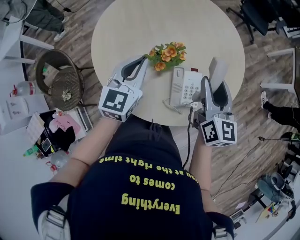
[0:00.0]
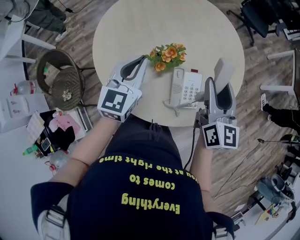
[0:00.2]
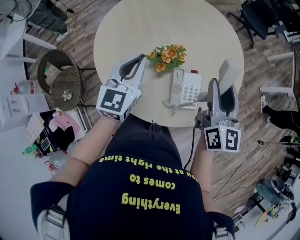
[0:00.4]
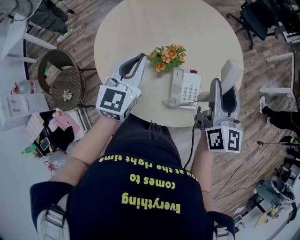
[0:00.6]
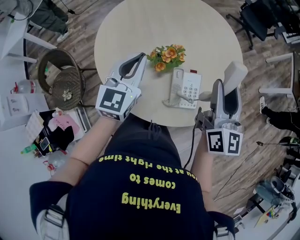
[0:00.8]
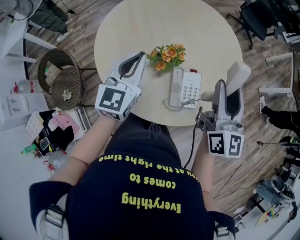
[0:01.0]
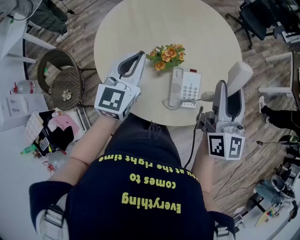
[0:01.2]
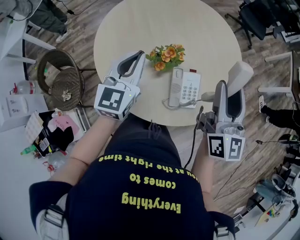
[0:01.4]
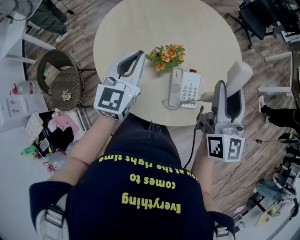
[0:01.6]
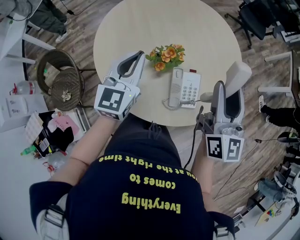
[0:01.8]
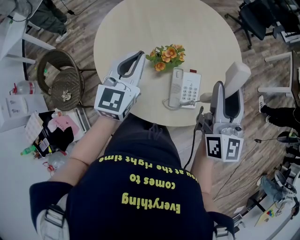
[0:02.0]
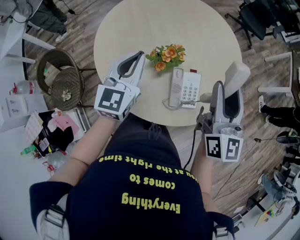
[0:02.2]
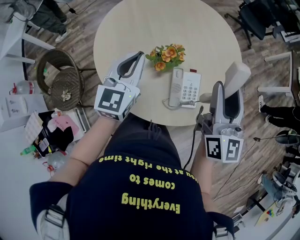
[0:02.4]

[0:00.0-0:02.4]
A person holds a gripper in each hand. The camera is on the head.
0:00.0 to 0:01.2: The right gripper travels upward by some 10 cm.
0:01.2 to 0:02.4: Both grippers stay about where they are.

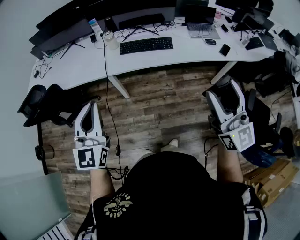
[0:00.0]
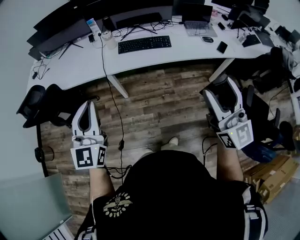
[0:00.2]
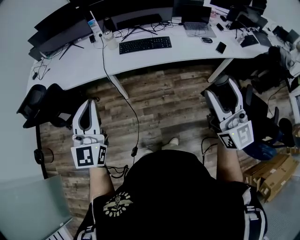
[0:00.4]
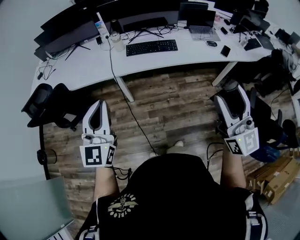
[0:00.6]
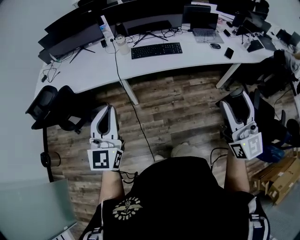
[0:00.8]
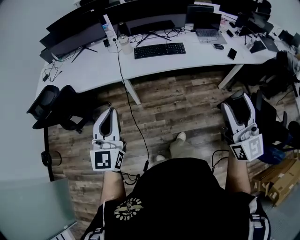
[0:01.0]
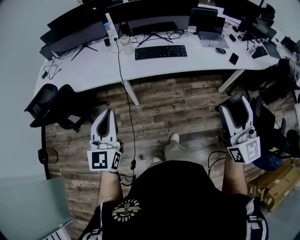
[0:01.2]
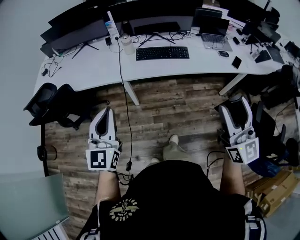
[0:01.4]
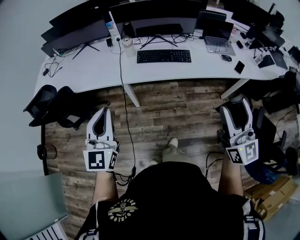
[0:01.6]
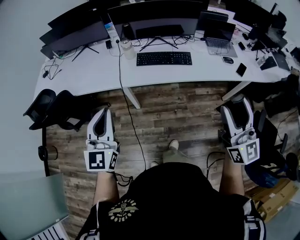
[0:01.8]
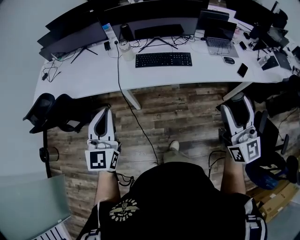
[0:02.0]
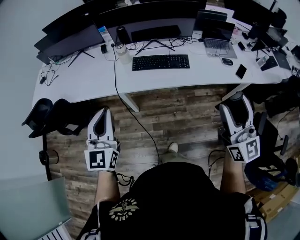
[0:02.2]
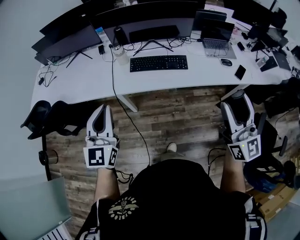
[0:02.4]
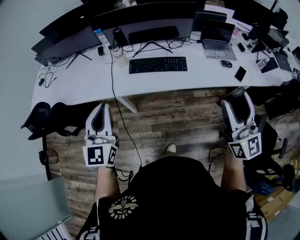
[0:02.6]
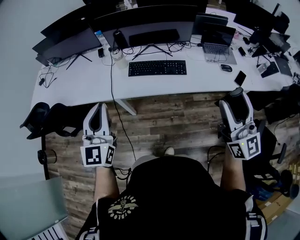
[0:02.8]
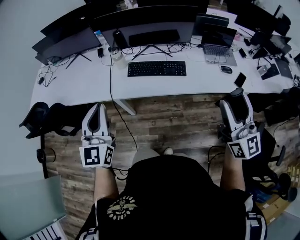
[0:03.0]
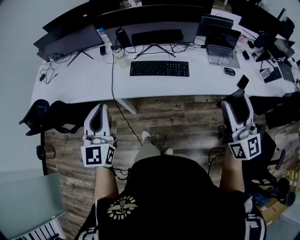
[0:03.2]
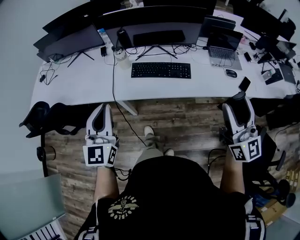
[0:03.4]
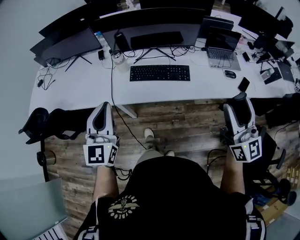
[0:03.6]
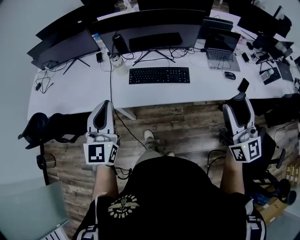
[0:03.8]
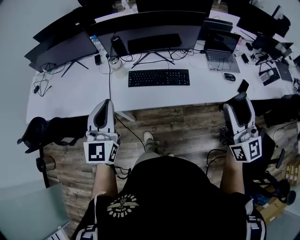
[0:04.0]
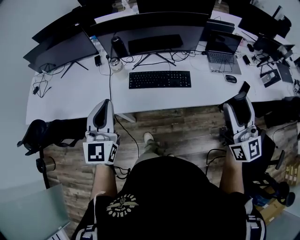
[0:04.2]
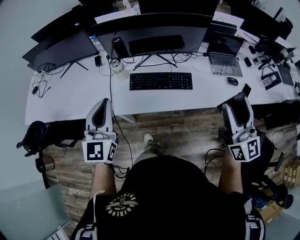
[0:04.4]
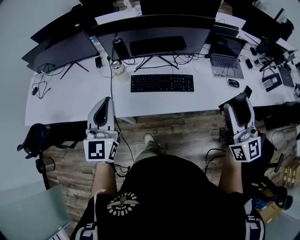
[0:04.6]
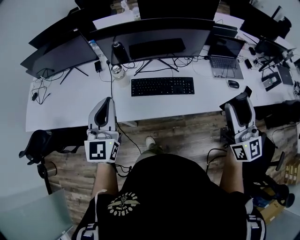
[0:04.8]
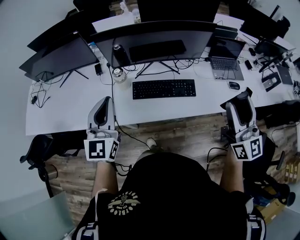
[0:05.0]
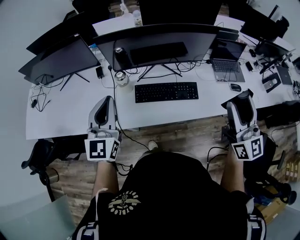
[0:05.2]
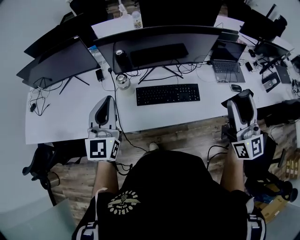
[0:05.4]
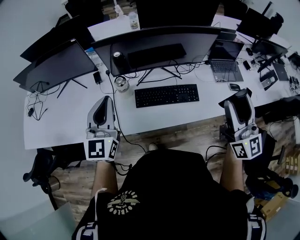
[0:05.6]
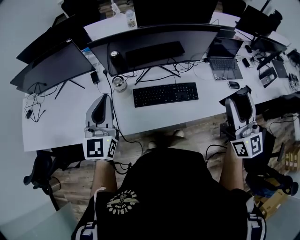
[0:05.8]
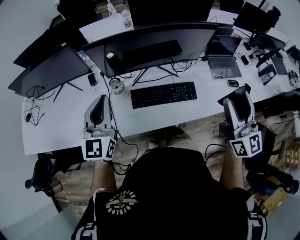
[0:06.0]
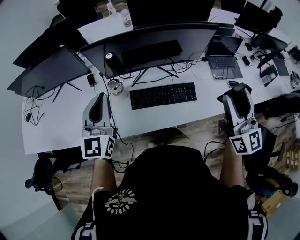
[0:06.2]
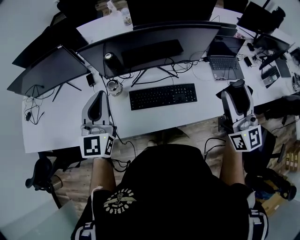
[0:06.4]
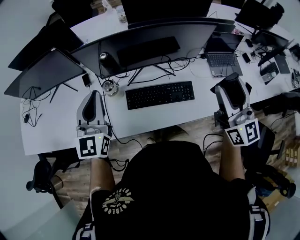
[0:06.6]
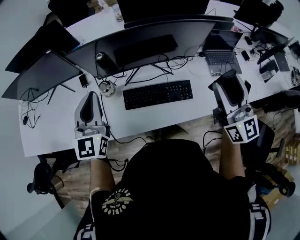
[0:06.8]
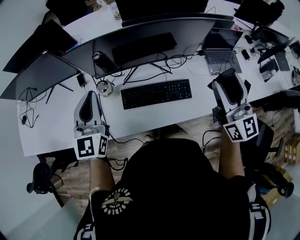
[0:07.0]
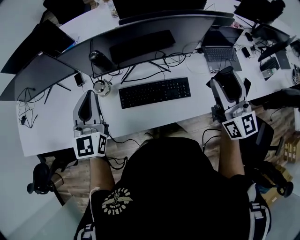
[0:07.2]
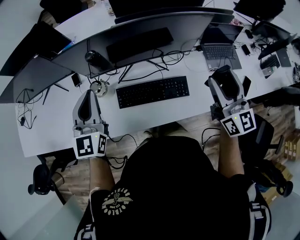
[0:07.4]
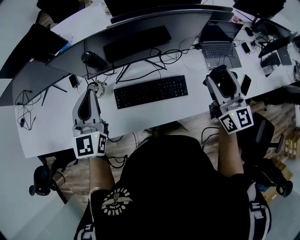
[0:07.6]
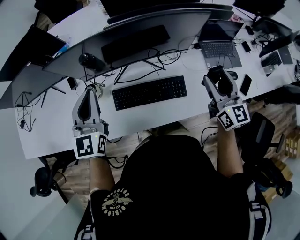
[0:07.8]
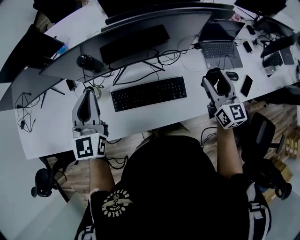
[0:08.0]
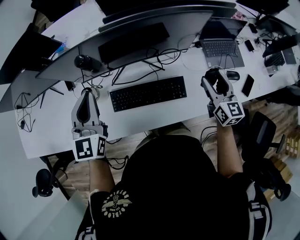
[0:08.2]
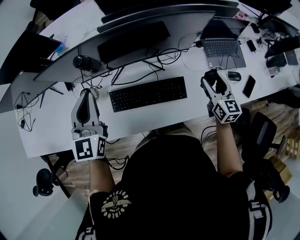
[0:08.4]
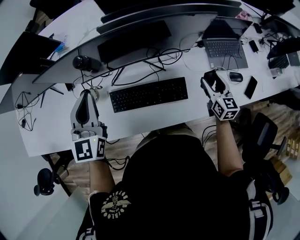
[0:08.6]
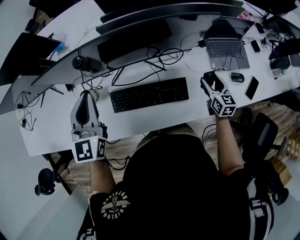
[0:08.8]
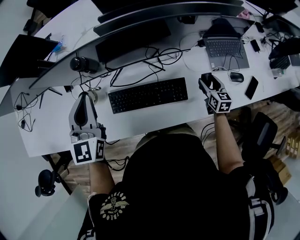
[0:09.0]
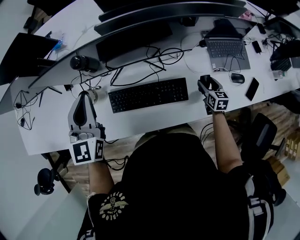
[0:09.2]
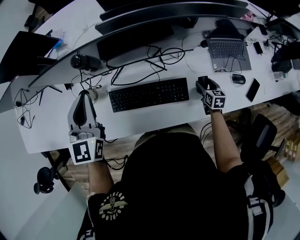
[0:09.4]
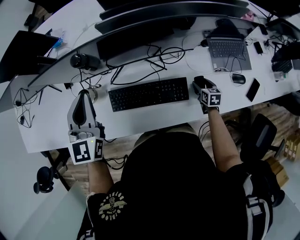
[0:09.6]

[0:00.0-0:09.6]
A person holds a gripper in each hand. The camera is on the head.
0:00.0 to 0:01.6: The right gripper ends up some 5 cm from where it was. Meanwhile the left gripper goes some 5 cm to the left.
0:01.6 to 0:03.2: The grippers both shift forward and to the right by approximately 20 cm.
0:03.2 to 0:04.8: Both grippers move forward, approximately 15 cm.
0:04.8 to 0:06.4: Both grippers move forward, about 15 cm.
0:06.4 to 0:08.0: The left gripper moves forward, to the right and downward, roughly 10 cm; the right gripper goes approximately 25 cm downward, forward and to the right, and turns by approximately 20 degrees.
0:08.0 to 0:09.6: The right gripper is displaced downward by roughly 30 cm, and tilts its fingers about 40 degrees downward.

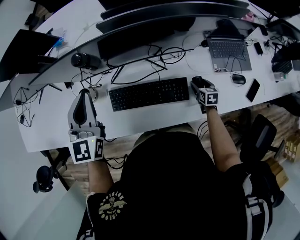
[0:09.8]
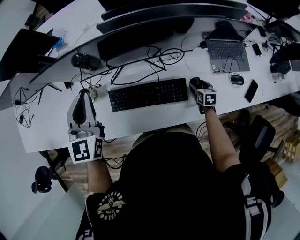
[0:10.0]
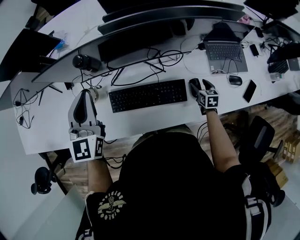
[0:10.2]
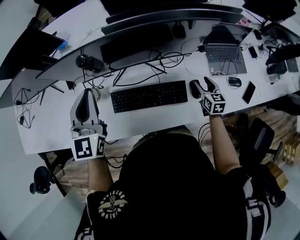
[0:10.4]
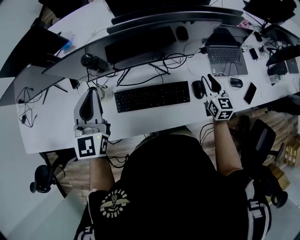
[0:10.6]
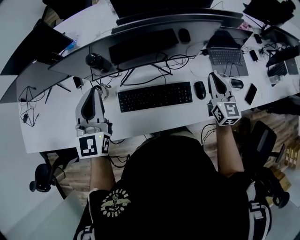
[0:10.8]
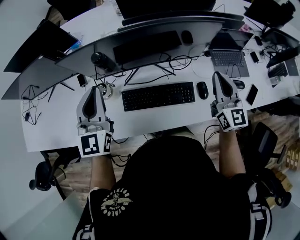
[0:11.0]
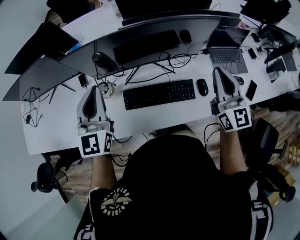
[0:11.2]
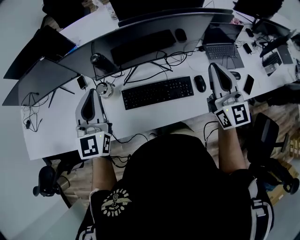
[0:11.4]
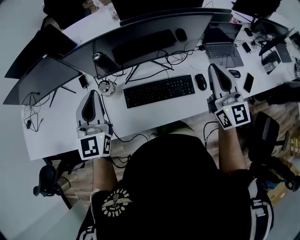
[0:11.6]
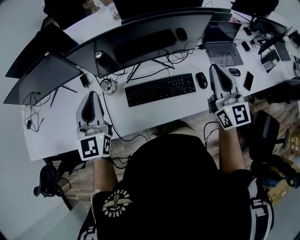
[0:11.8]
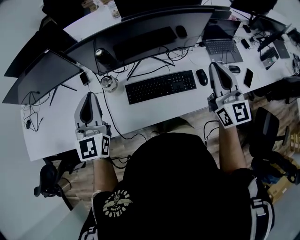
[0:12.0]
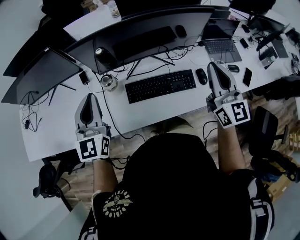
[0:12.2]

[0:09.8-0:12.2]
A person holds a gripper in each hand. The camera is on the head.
0:09.8 to 0:11.0: The left gripper heads upward, covering some 5 cm; the right gripper is displaced upward by some 40 cm, angles its fingers upward, by approximately 50 degrees, and closes.
0:11.0 to 0:12.2: The left gripper moves to the left and backward, approximately 10 cm, while the right gripper goes approximately 15 cm backward, to the left and upward.

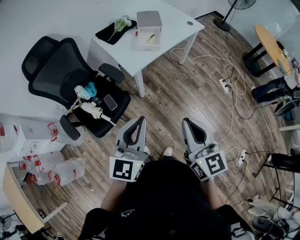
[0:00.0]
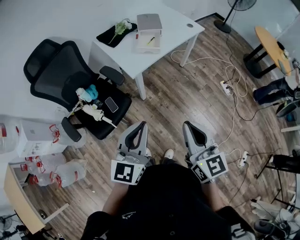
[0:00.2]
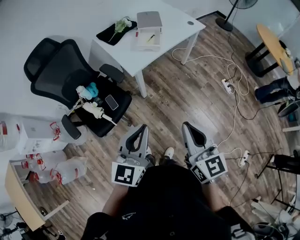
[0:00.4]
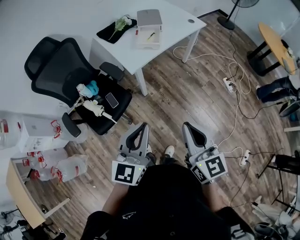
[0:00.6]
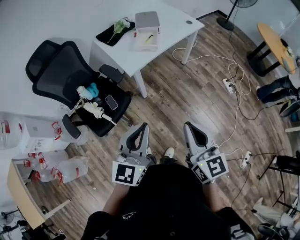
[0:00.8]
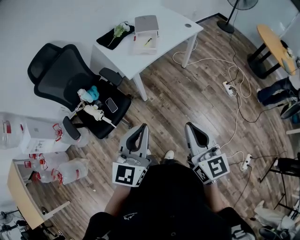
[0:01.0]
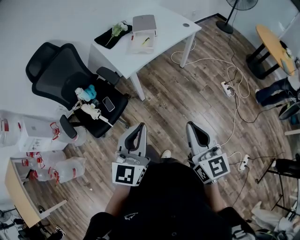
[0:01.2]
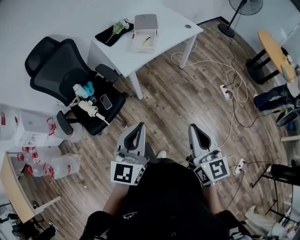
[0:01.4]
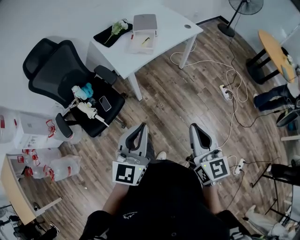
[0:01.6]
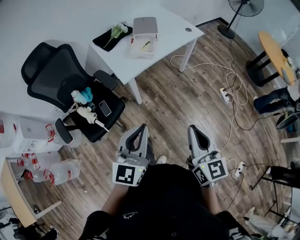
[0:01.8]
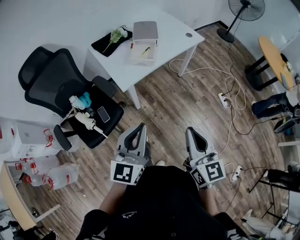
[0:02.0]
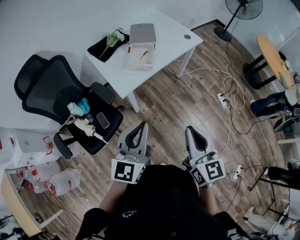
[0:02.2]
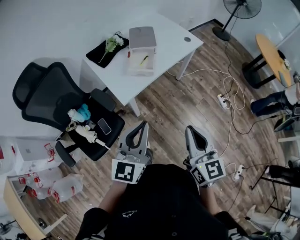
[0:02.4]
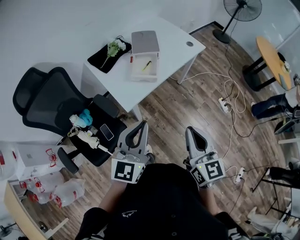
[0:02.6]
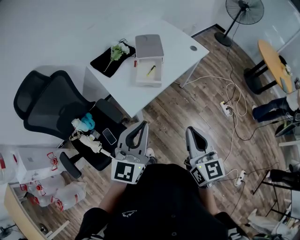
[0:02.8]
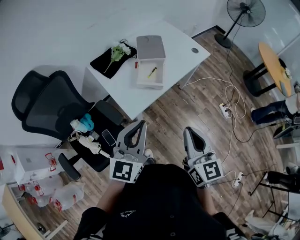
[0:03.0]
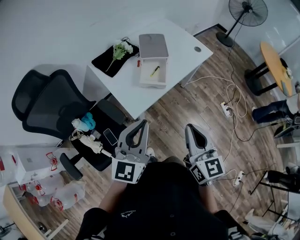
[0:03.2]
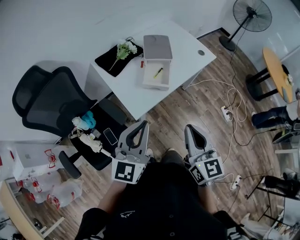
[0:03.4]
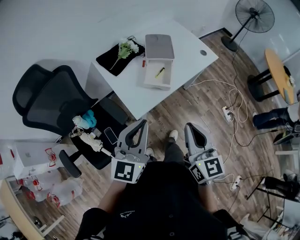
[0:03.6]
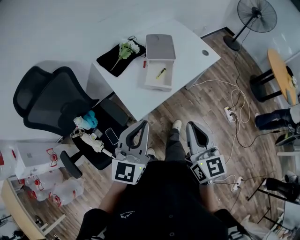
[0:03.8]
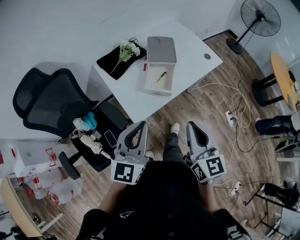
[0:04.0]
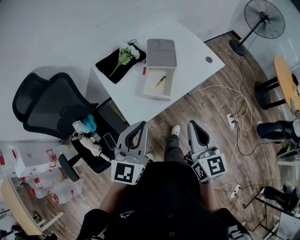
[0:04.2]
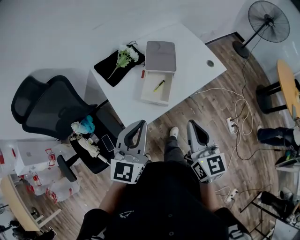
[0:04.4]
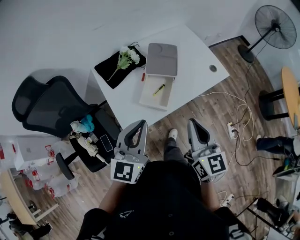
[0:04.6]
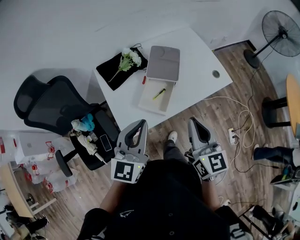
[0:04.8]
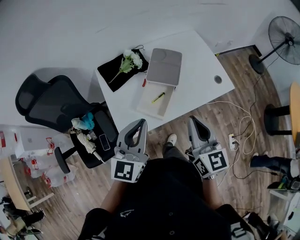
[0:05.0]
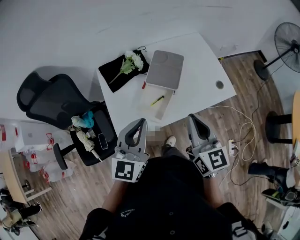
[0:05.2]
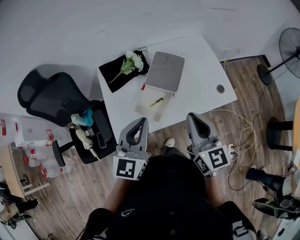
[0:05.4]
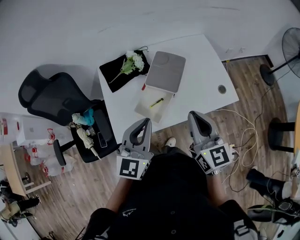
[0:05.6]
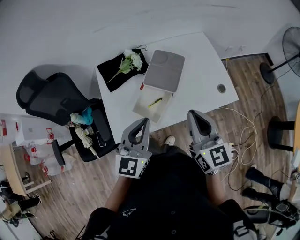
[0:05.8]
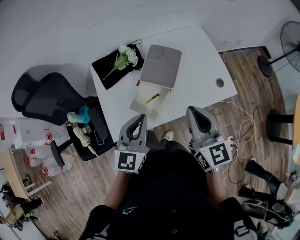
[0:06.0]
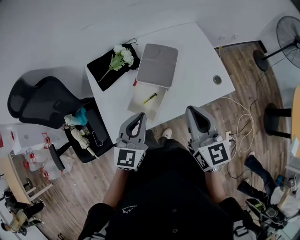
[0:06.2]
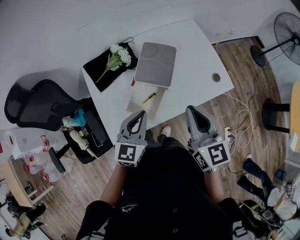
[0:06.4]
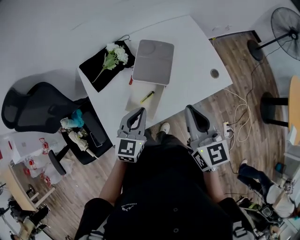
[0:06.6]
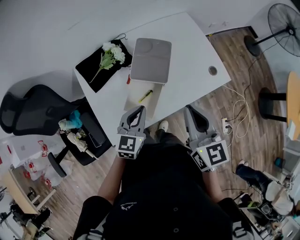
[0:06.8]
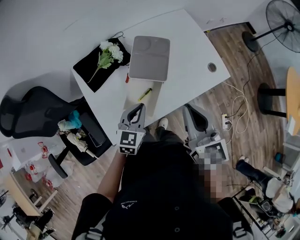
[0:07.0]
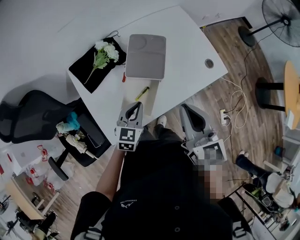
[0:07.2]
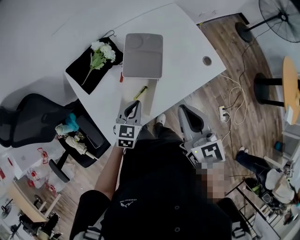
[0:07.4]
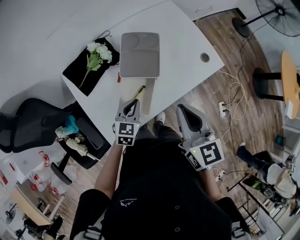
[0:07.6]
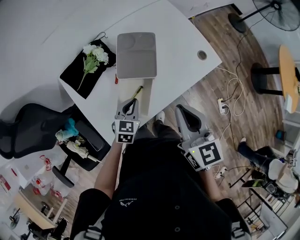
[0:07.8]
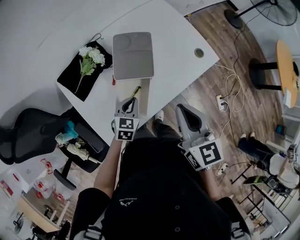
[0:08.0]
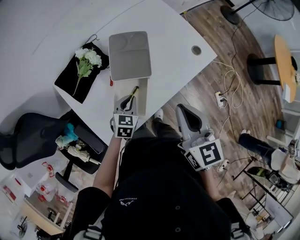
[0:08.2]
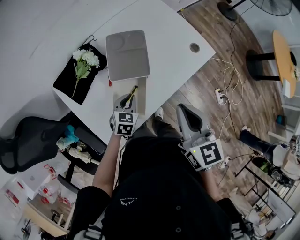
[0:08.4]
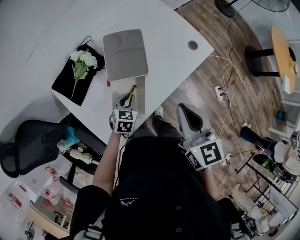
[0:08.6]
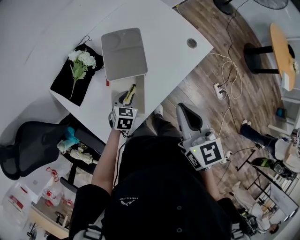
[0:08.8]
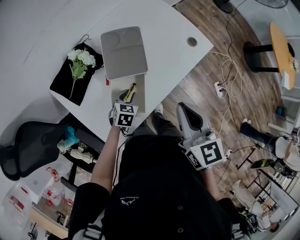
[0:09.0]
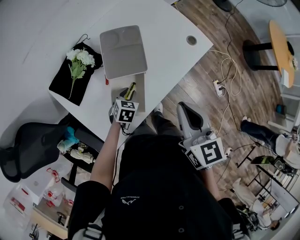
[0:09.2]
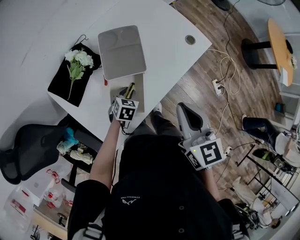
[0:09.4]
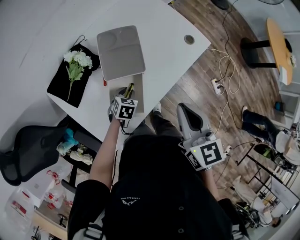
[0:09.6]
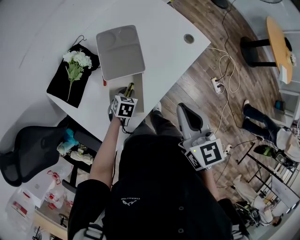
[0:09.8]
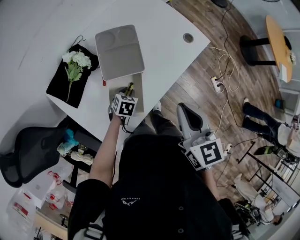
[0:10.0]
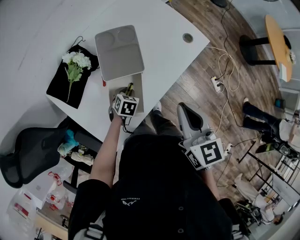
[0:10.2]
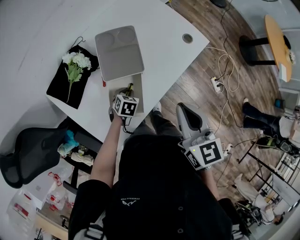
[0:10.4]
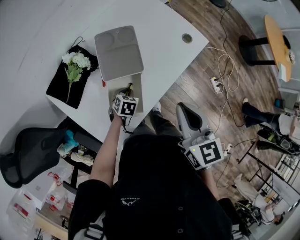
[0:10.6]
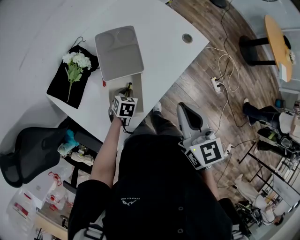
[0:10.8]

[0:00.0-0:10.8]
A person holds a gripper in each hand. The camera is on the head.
0:00.0 to 0:01.6: Both grippers travel together to the right, some 10 cm.
0:01.6 to 0:03.0: The left gripper is displaced forward by approximately 30 cm; the right gripper moves forward and to the left, approximately 30 cm.
0:03.0 to 0:04.6: Both grippers travel together forward, some 20 cm.
0:04.6 to 0:06.2: The right gripper heads forward and to the right, covering about 20 cm. Meanwhile the left gripper shifts roughly 20 cm forward, to the right and downward.
0:06.2 to 0:07.8: The left gripper is displaced downward by approximately 20 cm, and turns by approximately 30 degrees.
0:07.8 to 0:09.2: The left gripper travels downward by about 10 cm, rotates about 20 degrees, and opens up.
0:09.2 to 0:10.8: The grippers make only small movements.
